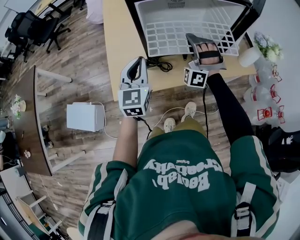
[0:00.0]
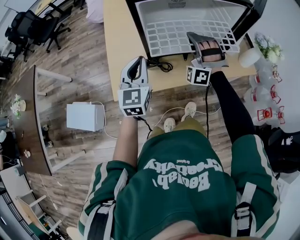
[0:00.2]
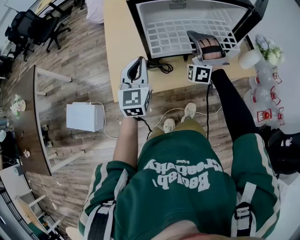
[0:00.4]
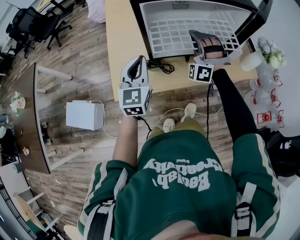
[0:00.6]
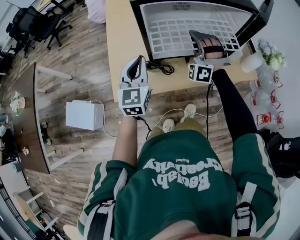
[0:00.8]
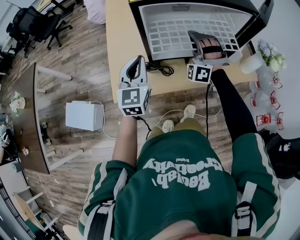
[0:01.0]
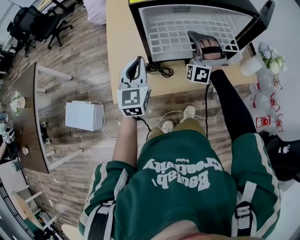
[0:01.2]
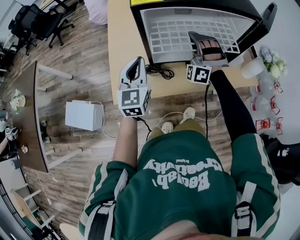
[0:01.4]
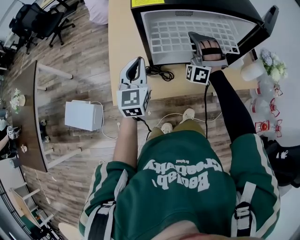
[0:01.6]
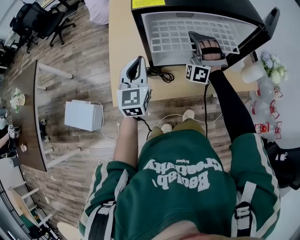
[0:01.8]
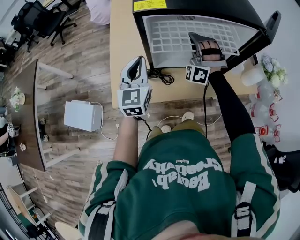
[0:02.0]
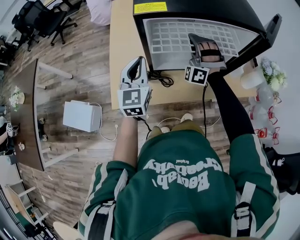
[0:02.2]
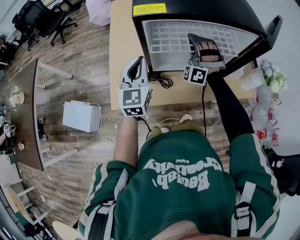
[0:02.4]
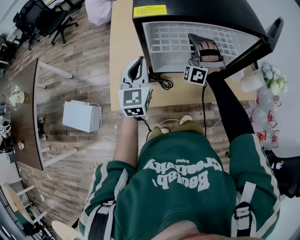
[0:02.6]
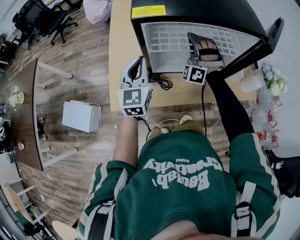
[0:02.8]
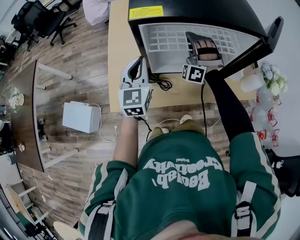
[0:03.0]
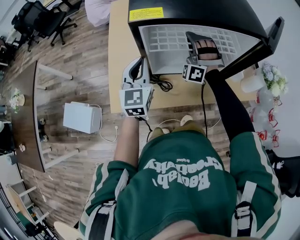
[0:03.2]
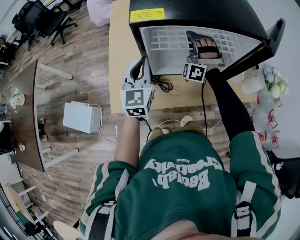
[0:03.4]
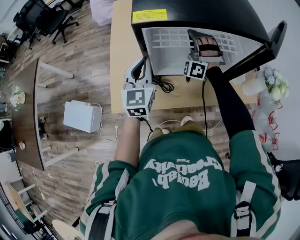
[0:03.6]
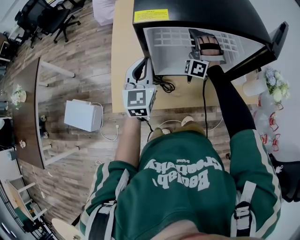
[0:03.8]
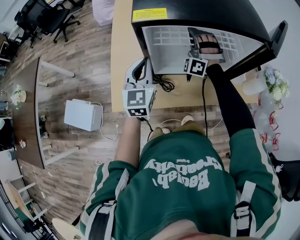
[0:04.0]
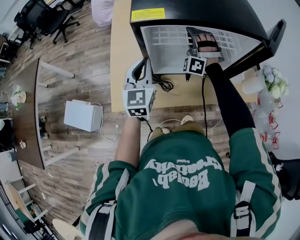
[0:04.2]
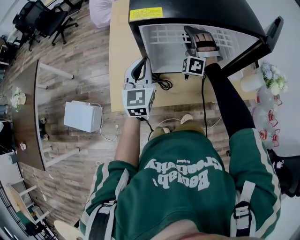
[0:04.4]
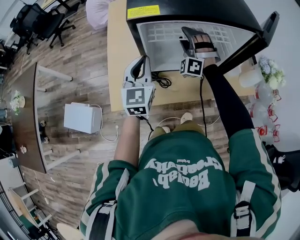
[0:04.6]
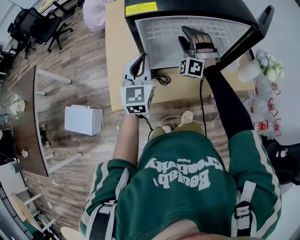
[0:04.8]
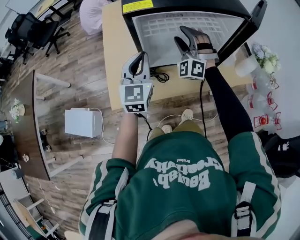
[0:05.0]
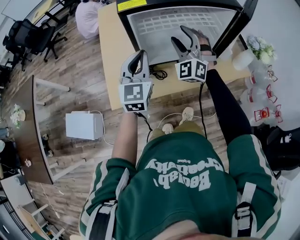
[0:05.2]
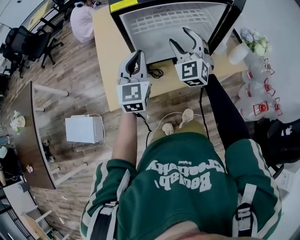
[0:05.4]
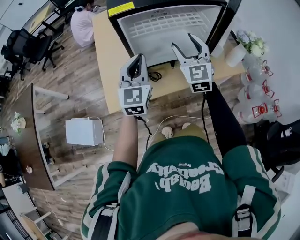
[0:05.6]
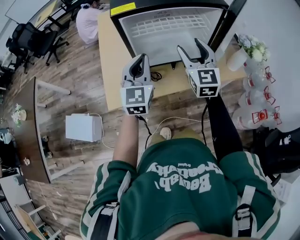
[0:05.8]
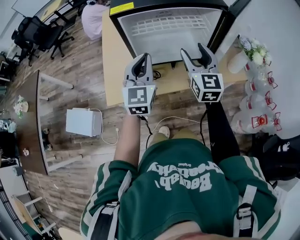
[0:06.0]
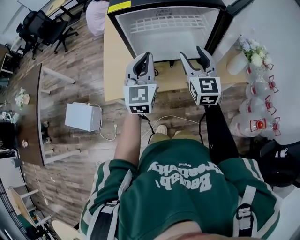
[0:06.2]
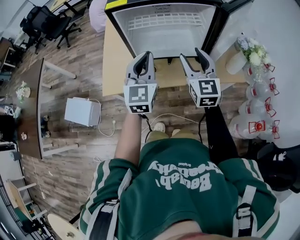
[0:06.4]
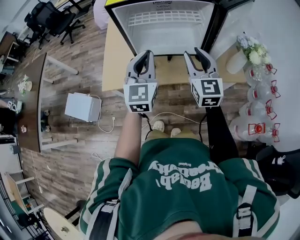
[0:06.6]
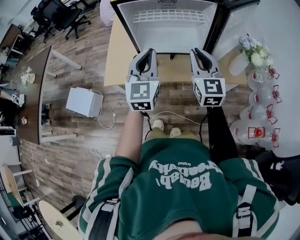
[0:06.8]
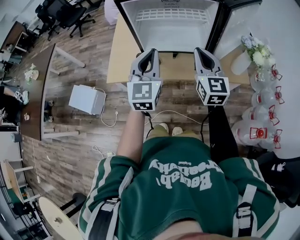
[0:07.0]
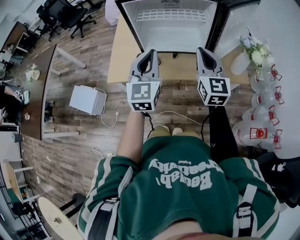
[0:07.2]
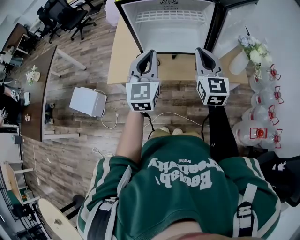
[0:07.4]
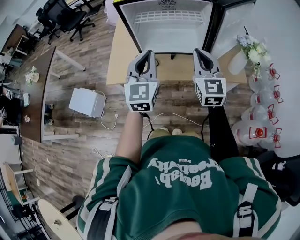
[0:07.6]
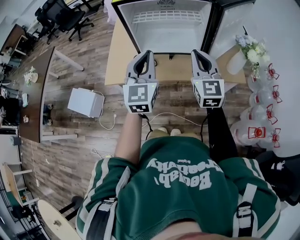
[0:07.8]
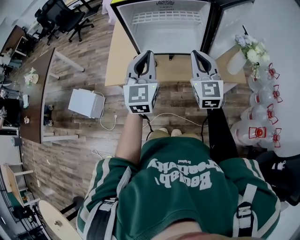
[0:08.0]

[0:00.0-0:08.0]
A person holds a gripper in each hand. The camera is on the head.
0:00.0 to 0:01.6: The right gripper shifts about 5 cm forward.
0:01.6 to 0:03.2: Both grippers move forward, roughly 5 cm.
0:03.2 to 0:04.8: The right gripper opens.
0:04.8 to 0:06.4: The right gripper moves backward and to the right, approximately 25 cm, and twists some 70 degrees clockwise, seen from behind. The left gripper shifts approximately 20 cm to the right, backward and upward.
0:06.4 to 0:08.0: Both grippers travel together backward, some 5 cm. The right gripper closes.

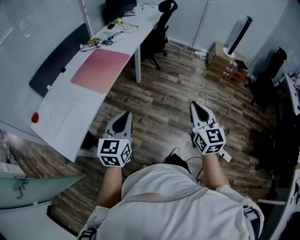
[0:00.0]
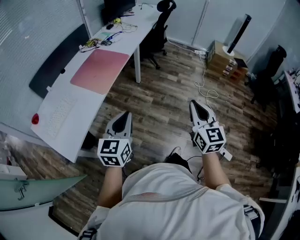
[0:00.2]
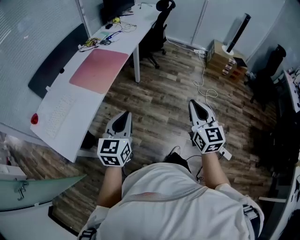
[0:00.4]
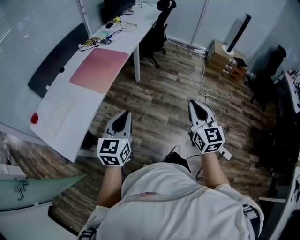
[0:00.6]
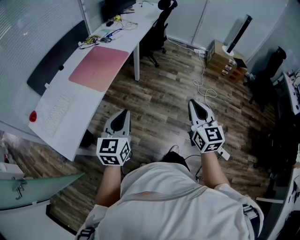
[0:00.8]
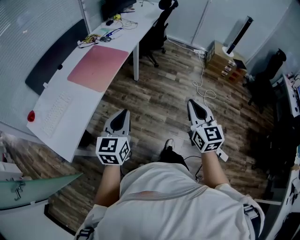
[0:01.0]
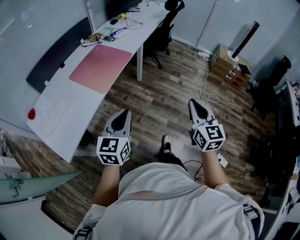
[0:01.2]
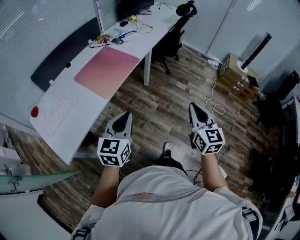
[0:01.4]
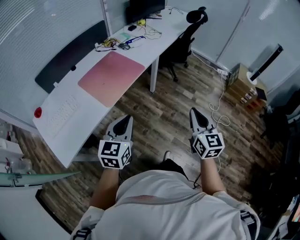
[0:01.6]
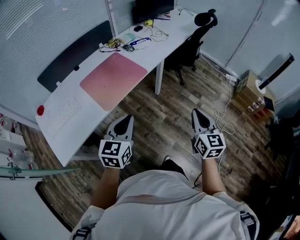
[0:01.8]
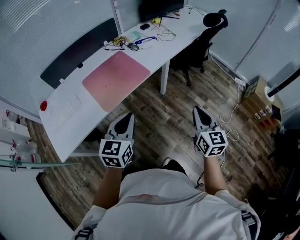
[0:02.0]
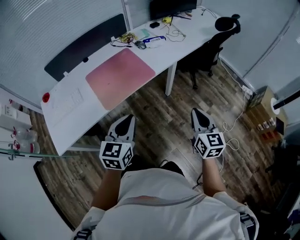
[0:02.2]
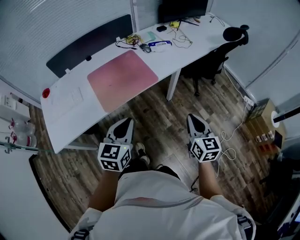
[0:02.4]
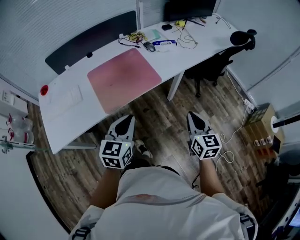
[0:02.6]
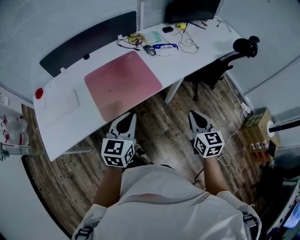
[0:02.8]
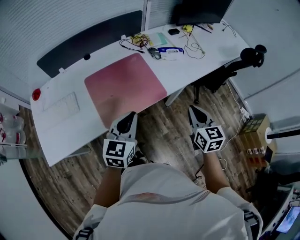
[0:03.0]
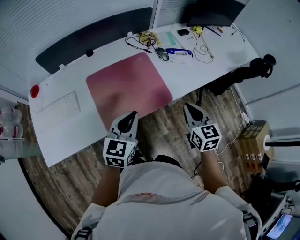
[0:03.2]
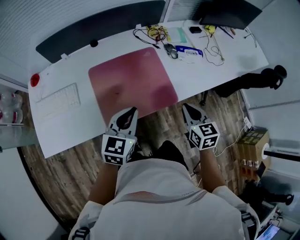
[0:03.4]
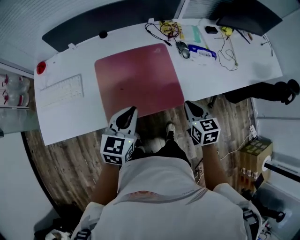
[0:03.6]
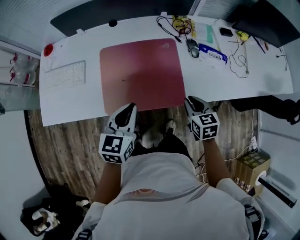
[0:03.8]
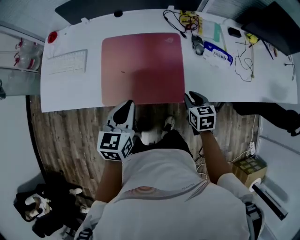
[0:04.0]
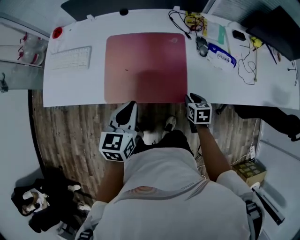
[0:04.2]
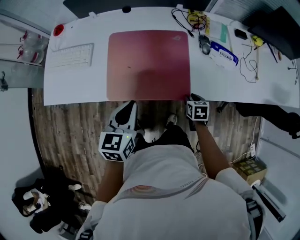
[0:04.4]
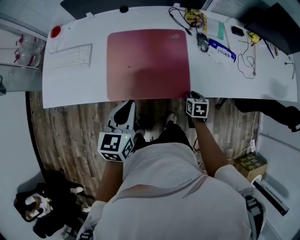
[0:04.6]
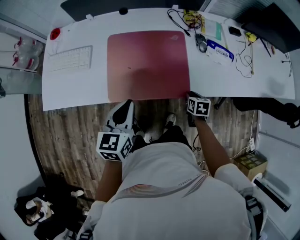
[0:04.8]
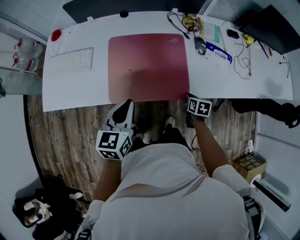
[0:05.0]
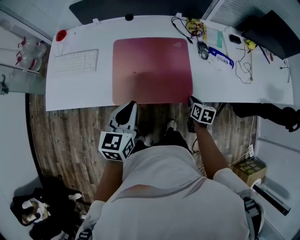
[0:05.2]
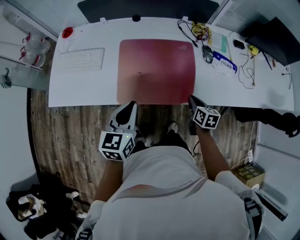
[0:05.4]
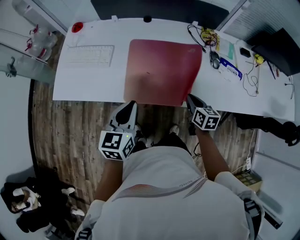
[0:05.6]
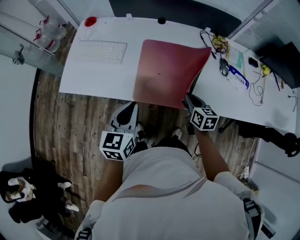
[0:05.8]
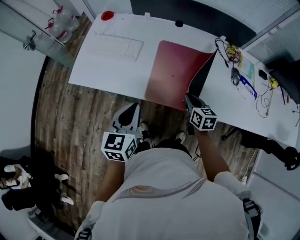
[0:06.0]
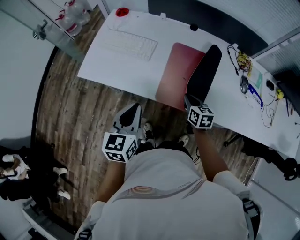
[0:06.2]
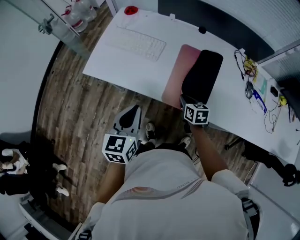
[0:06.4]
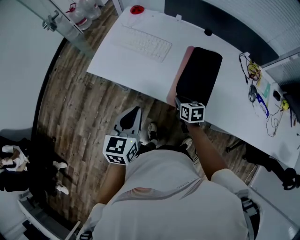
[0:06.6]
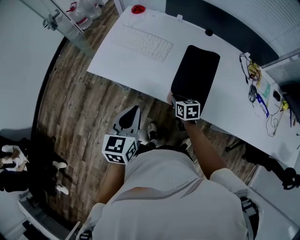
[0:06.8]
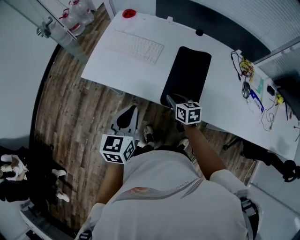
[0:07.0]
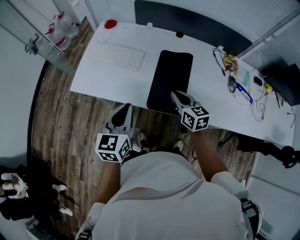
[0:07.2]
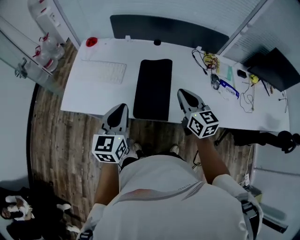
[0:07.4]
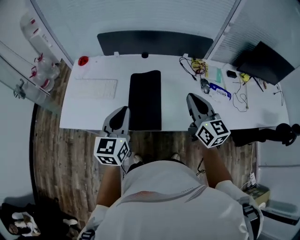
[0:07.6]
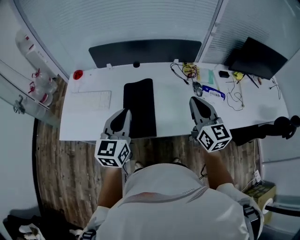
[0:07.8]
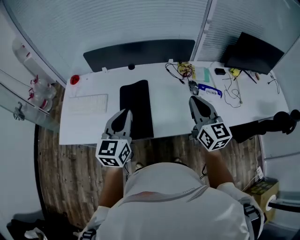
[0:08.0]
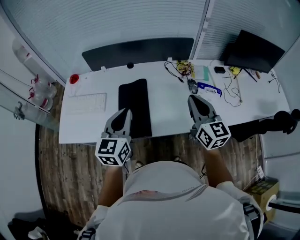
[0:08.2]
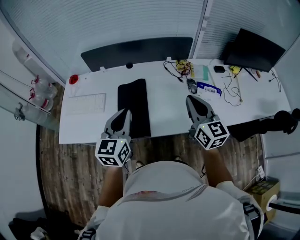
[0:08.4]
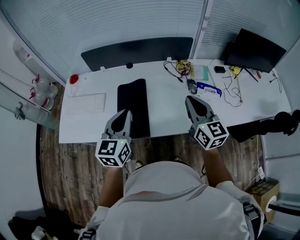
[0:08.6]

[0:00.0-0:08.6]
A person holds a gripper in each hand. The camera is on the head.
0:00.0 to 0:01.4: The two grippers go about 10 cm forward.
0:01.4 to 0:02.8: The right gripper moves approximately 40 cm, and rotates approximately 30 degrees, while the left gripper shifts by approximately 30 cm, and turns by about 30 degrees.
0:02.8 to 0:04.4: The left gripper moves some 15 cm, and swivels some 40 degrees, while the right gripper goes roughly 25 cm downward, tilts its fingers roughly 40 degrees downward, and opens up.
0:04.4 to 0:05.8: The left gripper shifts about 10 cm to the left. The right gripper is displaced to the left and upward by about 20 cm, rotates approximately 30 degrees, and closes.
0:05.8 to 0:07.2: The left gripper goes about 10 cm to the left, while the right gripper shifts some 20 cm to the left, forward and upward.
0:07.2 to 0:08.6: Both grippers travel together to the right and upward, about 30 cm. The right gripper turns by approximately 30 degrees.

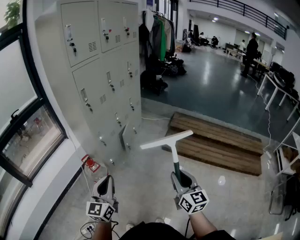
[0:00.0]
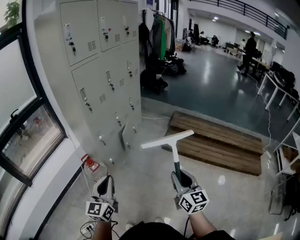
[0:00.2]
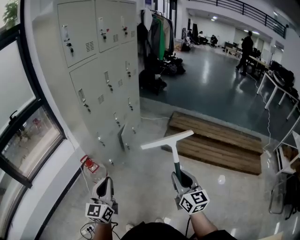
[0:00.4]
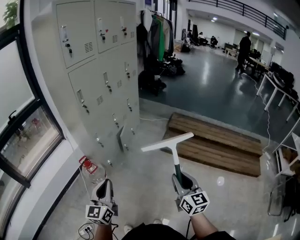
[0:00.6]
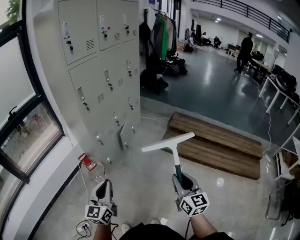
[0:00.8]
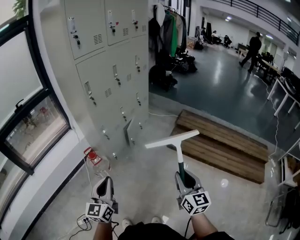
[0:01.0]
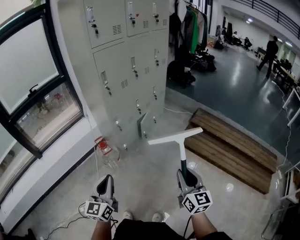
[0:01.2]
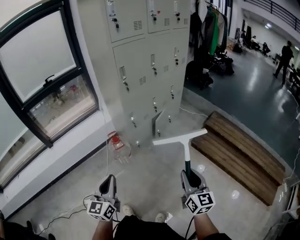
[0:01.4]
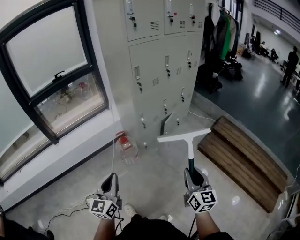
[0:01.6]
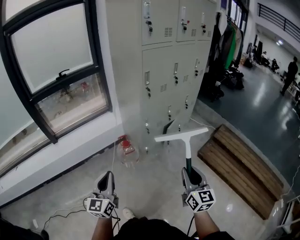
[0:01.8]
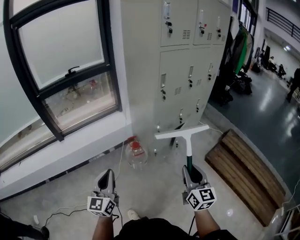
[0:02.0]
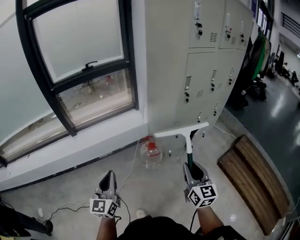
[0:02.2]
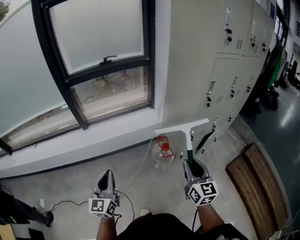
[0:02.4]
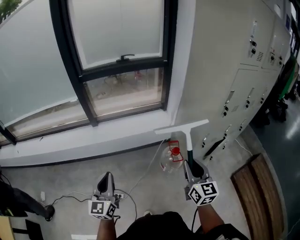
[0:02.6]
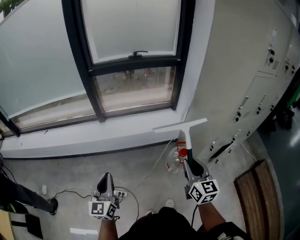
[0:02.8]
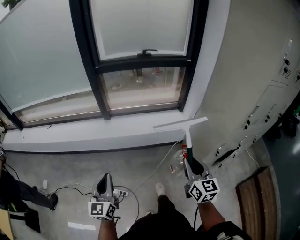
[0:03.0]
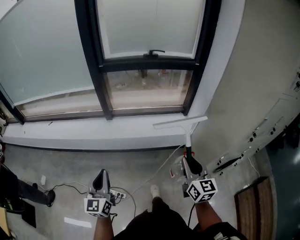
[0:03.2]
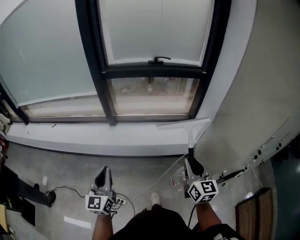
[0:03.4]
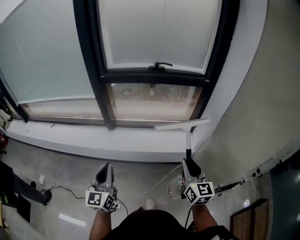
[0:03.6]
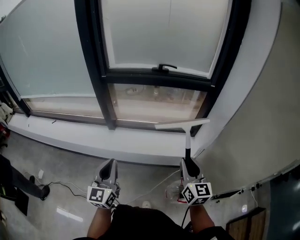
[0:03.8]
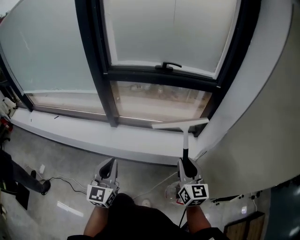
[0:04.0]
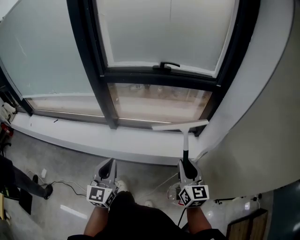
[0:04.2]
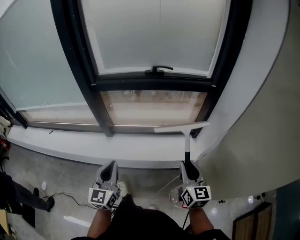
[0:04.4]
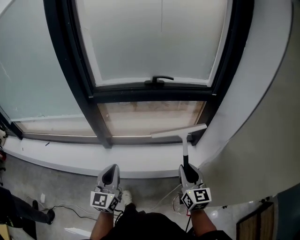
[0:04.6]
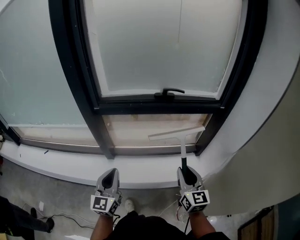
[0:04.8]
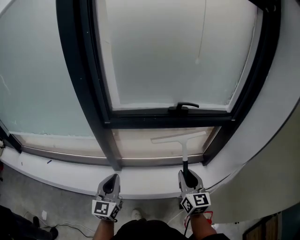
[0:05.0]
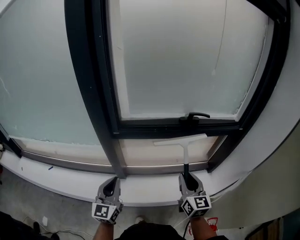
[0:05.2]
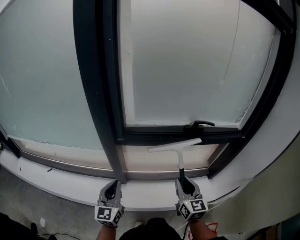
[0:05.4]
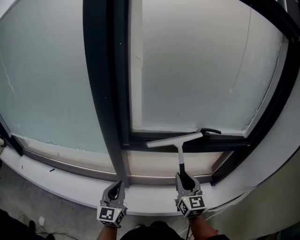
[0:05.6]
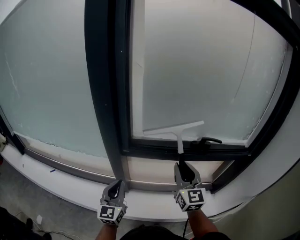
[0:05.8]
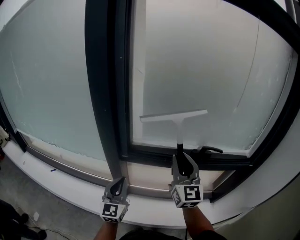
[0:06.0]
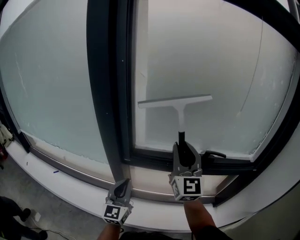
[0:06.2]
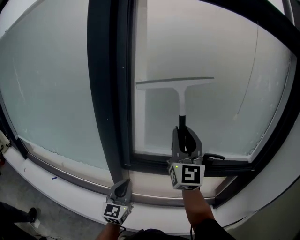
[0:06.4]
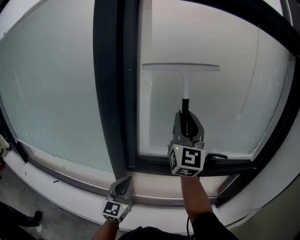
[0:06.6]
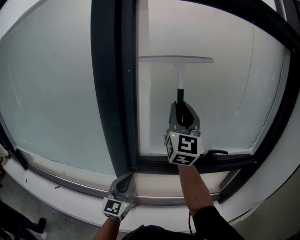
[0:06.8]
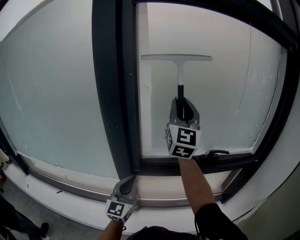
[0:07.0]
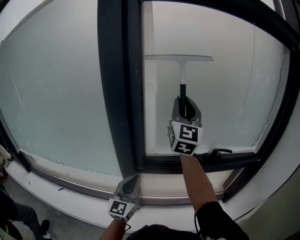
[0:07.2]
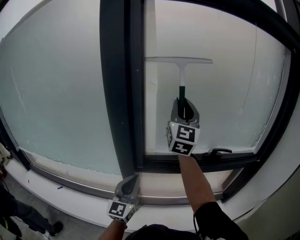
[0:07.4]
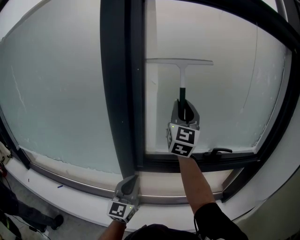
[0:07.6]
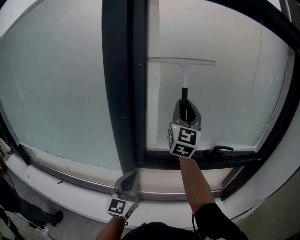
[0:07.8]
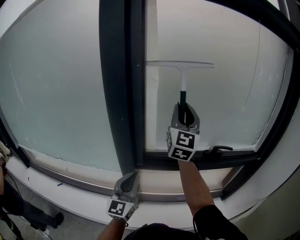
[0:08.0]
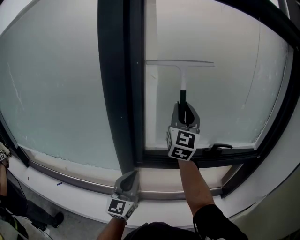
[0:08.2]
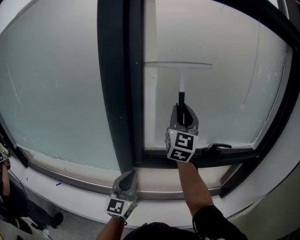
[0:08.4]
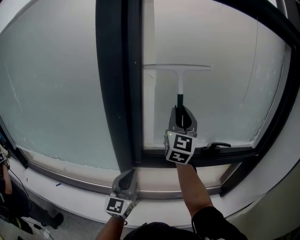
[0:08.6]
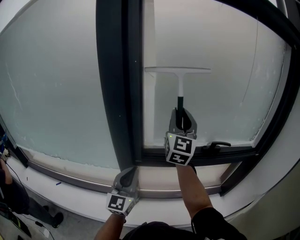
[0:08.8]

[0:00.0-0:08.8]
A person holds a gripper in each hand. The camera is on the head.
0:00.0 to 0:01.4: The left gripper shifts about 10 cm backward and to the left, and rotates roughly 20 degrees; the right gripper ends up roughly 5 cm from where it was.
0:01.4 to 0:03.0: The pair of grippers is taken roughly 50 cm. The left gripper swivels approximately 40 degrees. The right gripper rotates some 40 degrees.
0:03.0 to 0:04.4: Both grippers travel together forward, roughly 35 cm.
0:04.4 to 0:05.8: The two grippers go roughly 40 cm forward and to the left.
0:05.8 to 0:07.4: The right gripper moves upward and forward, about 30 cm, and swivels approximately 30 degrees, while the left gripper is displaced upward and forward by some 10 cm.
0:07.4 to 0:08.8: The right gripper shifts approximately 5 cm downward.
